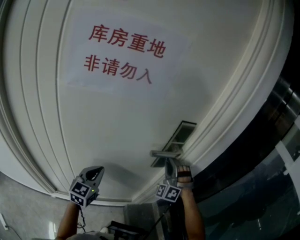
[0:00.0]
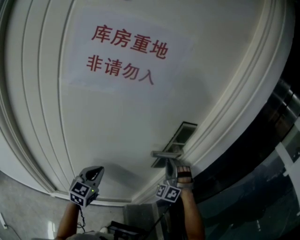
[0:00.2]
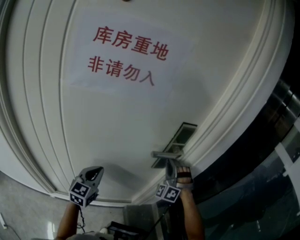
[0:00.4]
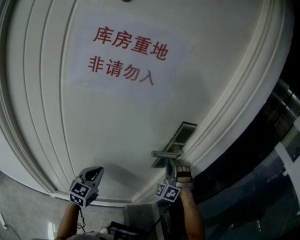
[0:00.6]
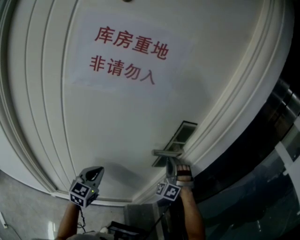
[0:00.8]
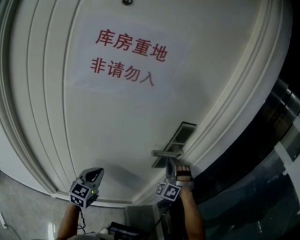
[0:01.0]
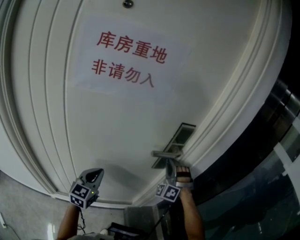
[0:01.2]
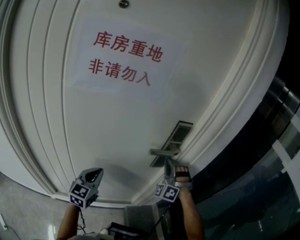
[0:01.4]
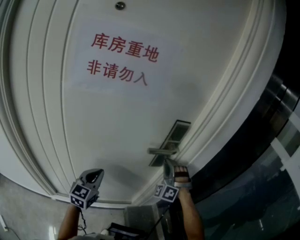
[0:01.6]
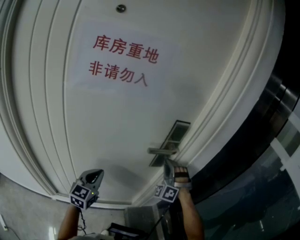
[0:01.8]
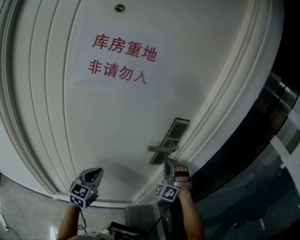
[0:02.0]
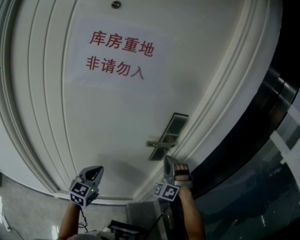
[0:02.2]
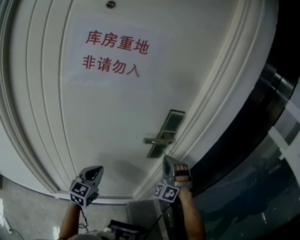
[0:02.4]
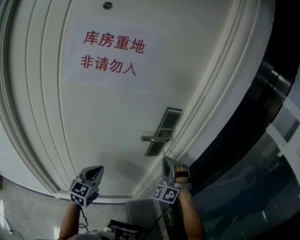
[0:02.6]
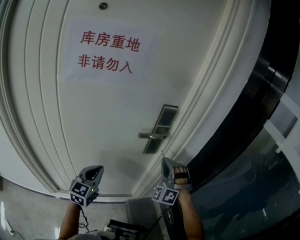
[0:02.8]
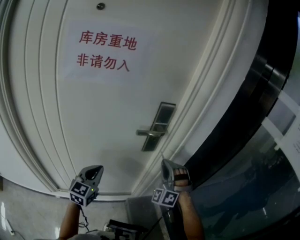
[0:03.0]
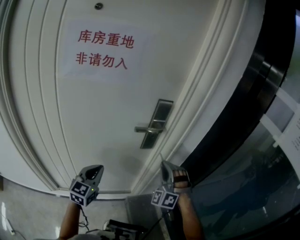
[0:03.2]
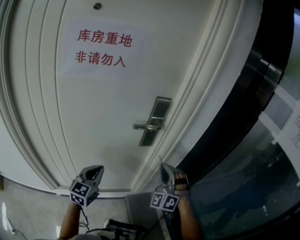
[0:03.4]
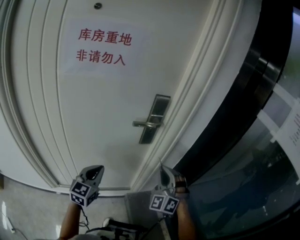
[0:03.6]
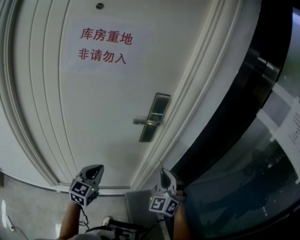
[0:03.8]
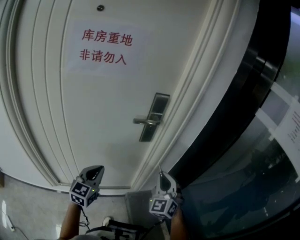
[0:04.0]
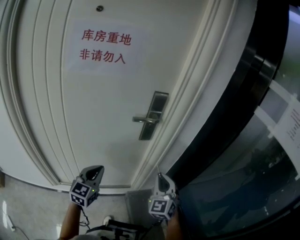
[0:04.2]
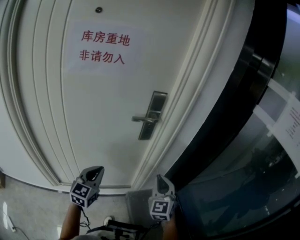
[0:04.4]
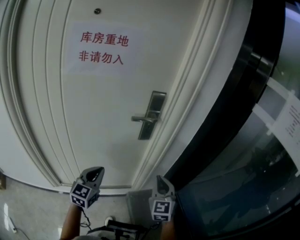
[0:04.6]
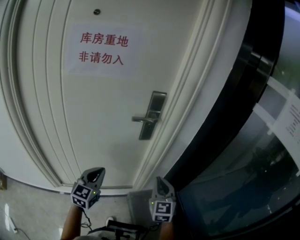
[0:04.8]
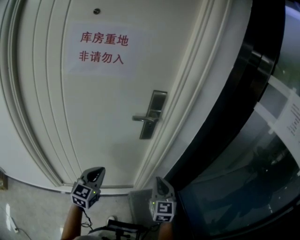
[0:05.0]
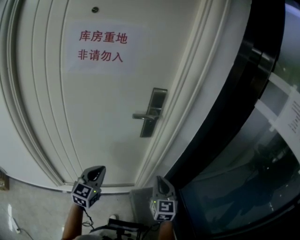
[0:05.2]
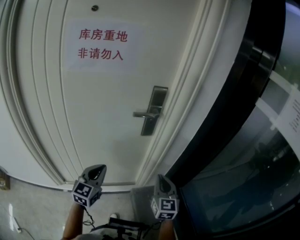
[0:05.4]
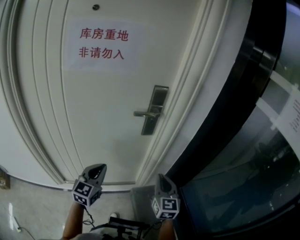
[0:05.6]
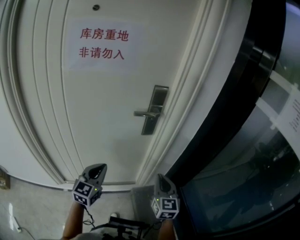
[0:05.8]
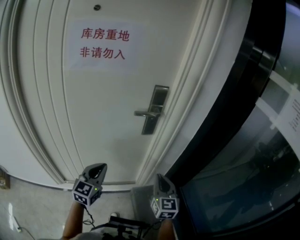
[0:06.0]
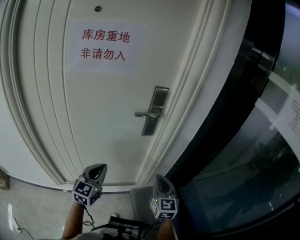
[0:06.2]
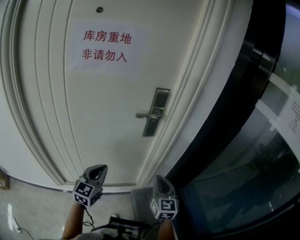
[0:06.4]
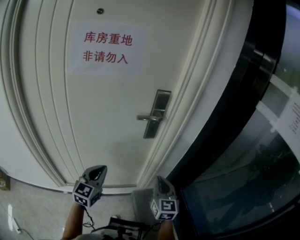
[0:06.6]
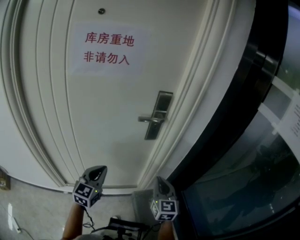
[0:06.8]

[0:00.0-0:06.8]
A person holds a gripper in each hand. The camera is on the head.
0:00.0 to 0:01.4: There are only small adjustments of the grippers.
0:01.4 to 0:02.8: The left gripper moves about 5 cm. The right gripper heads backward, covering approximately 10 cm.
0:02.8 to 0:04.0: The left gripper moves backward, some 5 cm, while the right gripper travels backward and to the right by roughly 15 cm, and swivels some 40 degrees.
0:04.0 to 0:05.4: The right gripper changes its angle by about 40 degrees.
0:05.4 to 0:06.8: The grippers make only small movements.

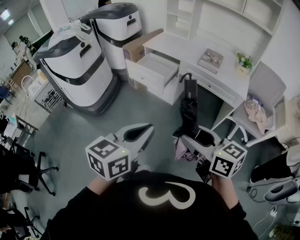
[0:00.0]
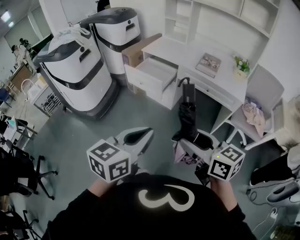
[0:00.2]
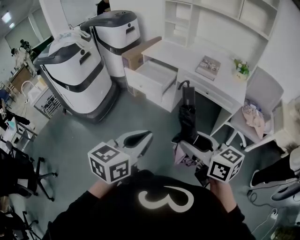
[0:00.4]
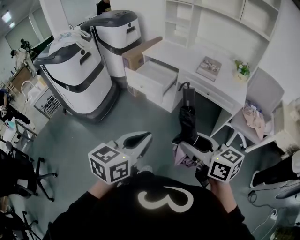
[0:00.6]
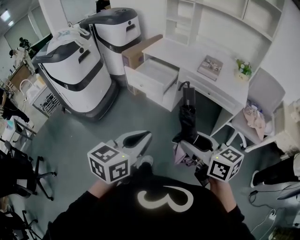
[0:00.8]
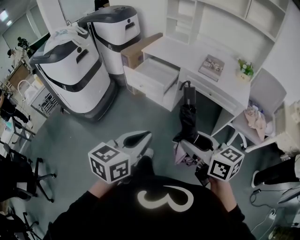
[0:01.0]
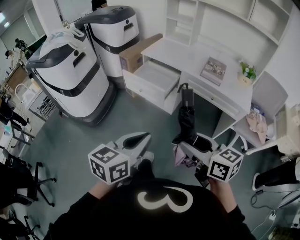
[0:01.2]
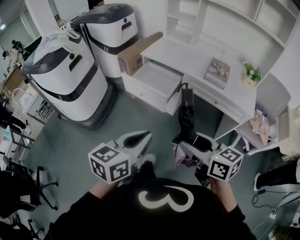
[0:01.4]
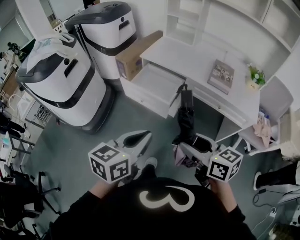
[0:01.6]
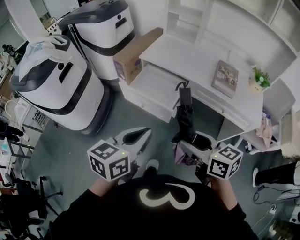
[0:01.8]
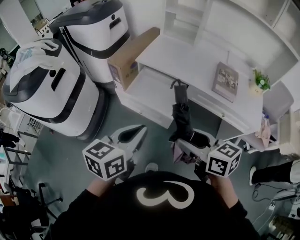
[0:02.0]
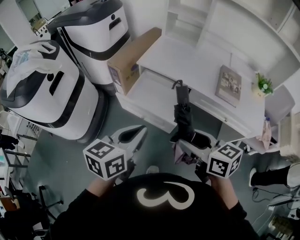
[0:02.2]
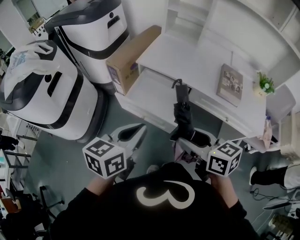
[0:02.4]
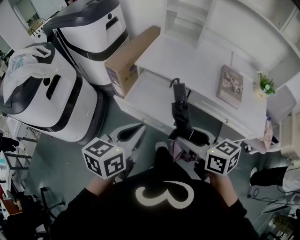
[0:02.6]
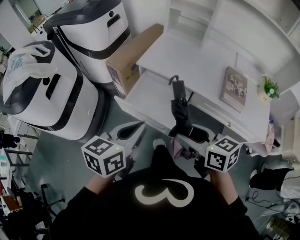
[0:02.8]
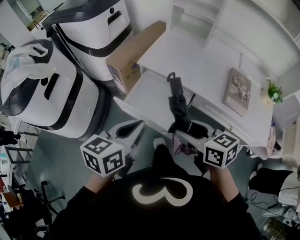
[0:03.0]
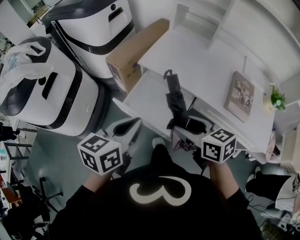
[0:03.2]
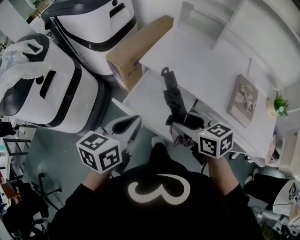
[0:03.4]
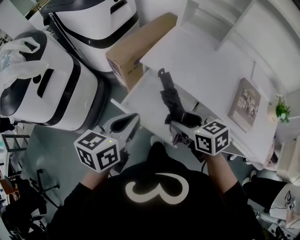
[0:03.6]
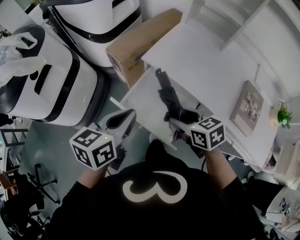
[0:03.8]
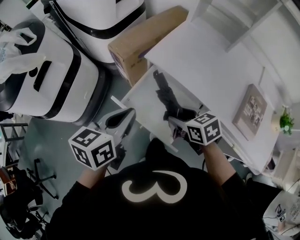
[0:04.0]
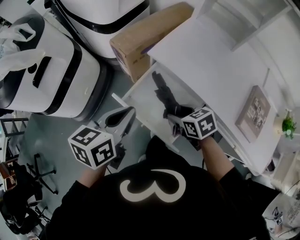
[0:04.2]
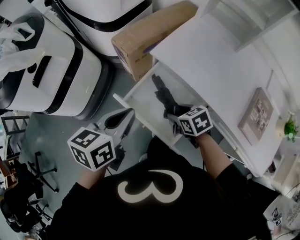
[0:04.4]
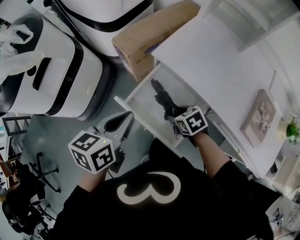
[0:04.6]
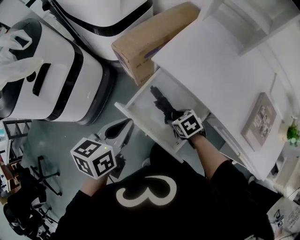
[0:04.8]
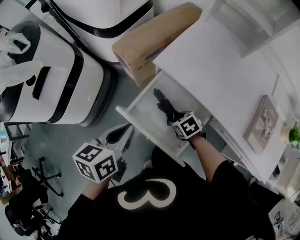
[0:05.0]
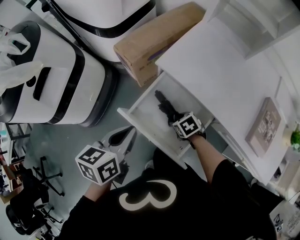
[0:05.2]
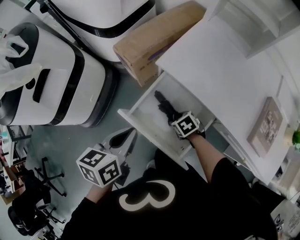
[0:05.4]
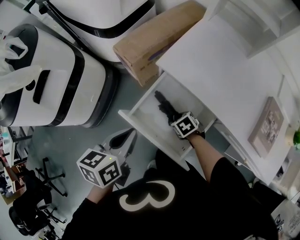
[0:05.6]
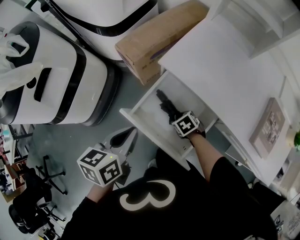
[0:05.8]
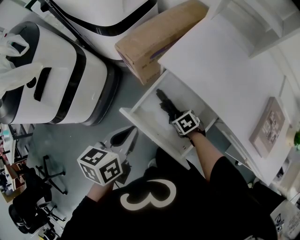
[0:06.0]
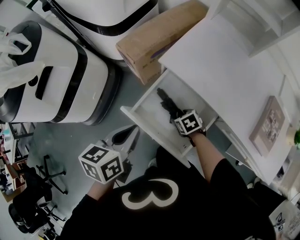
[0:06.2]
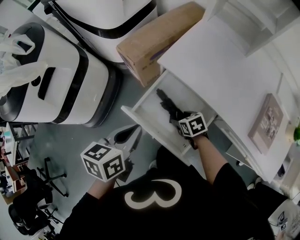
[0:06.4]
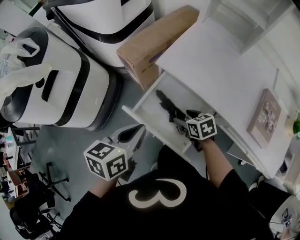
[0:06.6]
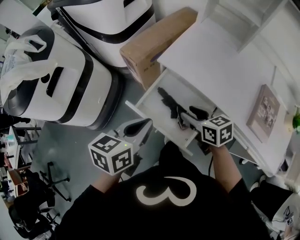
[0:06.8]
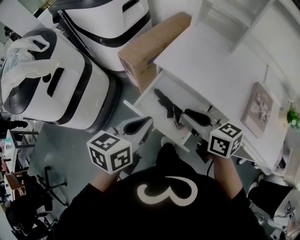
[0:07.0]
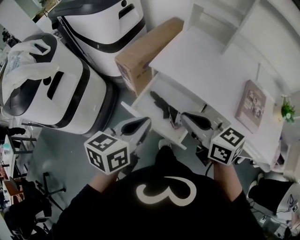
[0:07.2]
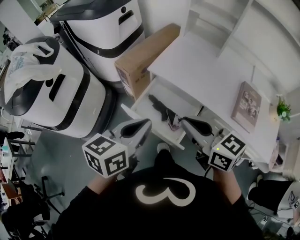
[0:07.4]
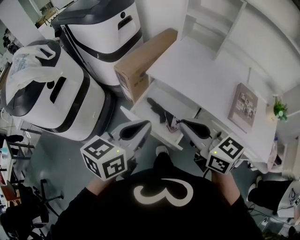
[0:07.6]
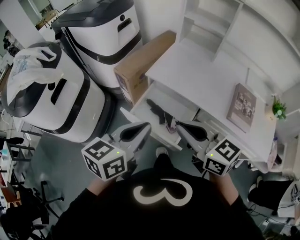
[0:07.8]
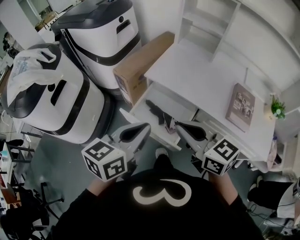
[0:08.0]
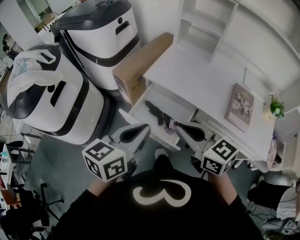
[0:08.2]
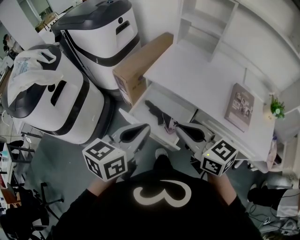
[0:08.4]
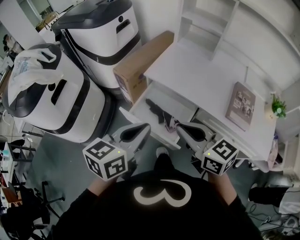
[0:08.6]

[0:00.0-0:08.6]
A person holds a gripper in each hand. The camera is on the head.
0:00.0 to 0:01.4: The two grippers go roughly 20 cm forward.
0:01.4 to 0:02.8: Both grippers move forward, approximately 35 cm.
0:02.8 to 0:04.4: The left gripper heads forward and downward, covering some 20 cm, while the right gripper travels downward and forward by approximately 30 cm, and tips its fingers downward by about 30 degrees.
0:04.4 to 0:05.8: The right gripper goes some 15 cm downward; the left gripper goes approximately 5 cm downward.
0:05.8 to 0:07.2: The right gripper shifts approximately 40 cm upward, tips its fingers upward by about 60 degrees, and closes its fingers; the left gripper goes approximately 15 cm upward and backward.
0:07.2 to 0:08.6: The right gripper is displaced backward by about 5 cm; the left gripper moves upward and backward, approximately 10 cm.

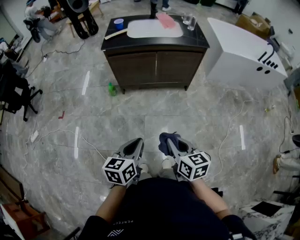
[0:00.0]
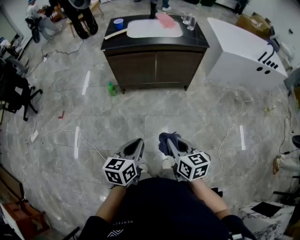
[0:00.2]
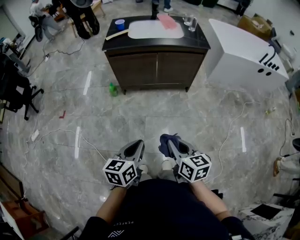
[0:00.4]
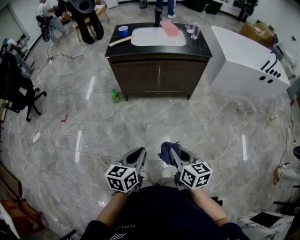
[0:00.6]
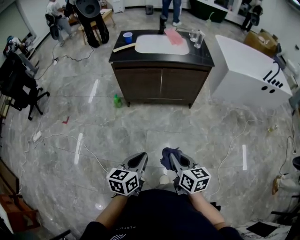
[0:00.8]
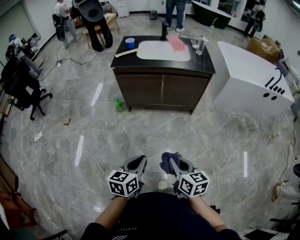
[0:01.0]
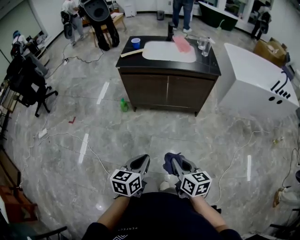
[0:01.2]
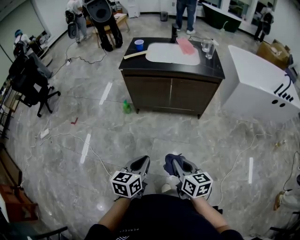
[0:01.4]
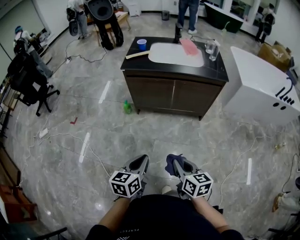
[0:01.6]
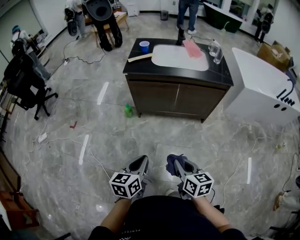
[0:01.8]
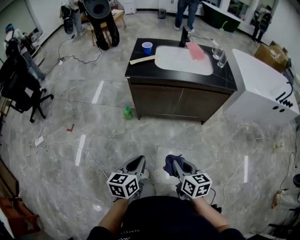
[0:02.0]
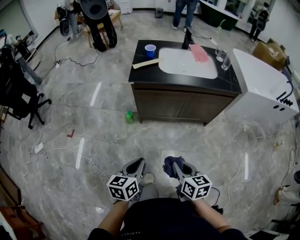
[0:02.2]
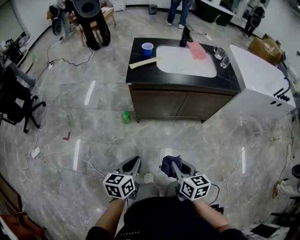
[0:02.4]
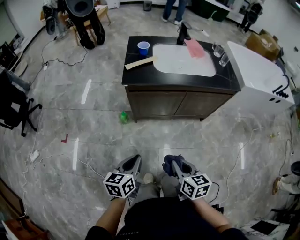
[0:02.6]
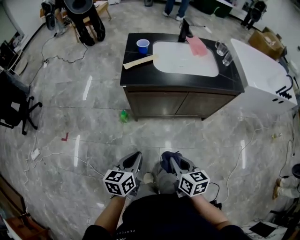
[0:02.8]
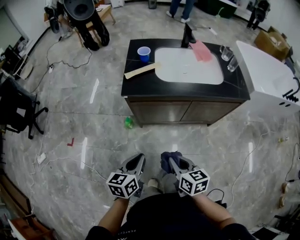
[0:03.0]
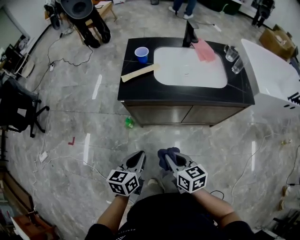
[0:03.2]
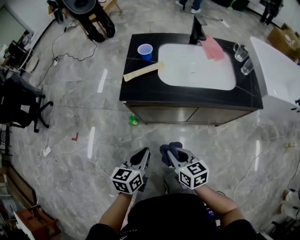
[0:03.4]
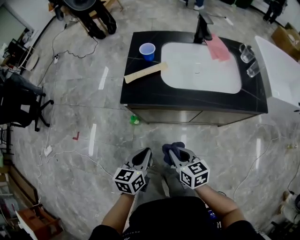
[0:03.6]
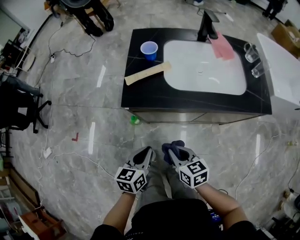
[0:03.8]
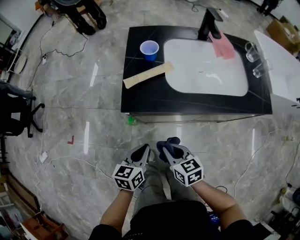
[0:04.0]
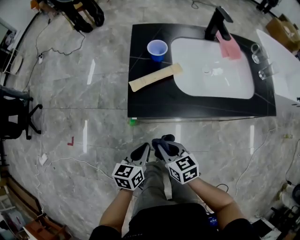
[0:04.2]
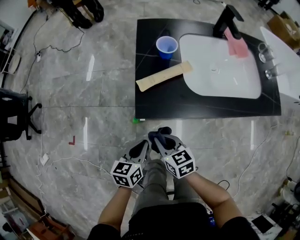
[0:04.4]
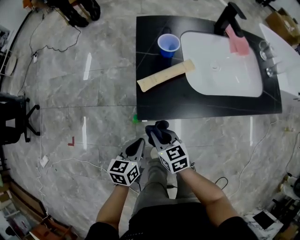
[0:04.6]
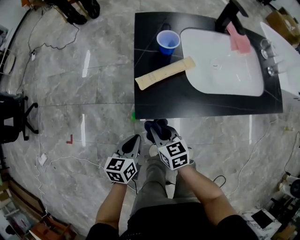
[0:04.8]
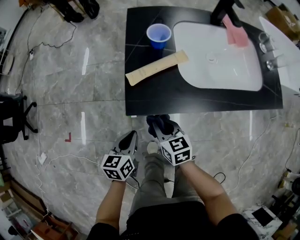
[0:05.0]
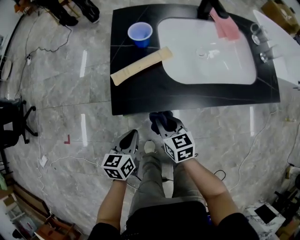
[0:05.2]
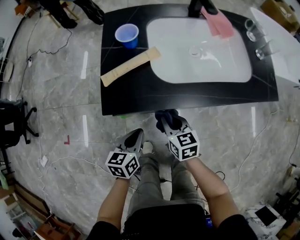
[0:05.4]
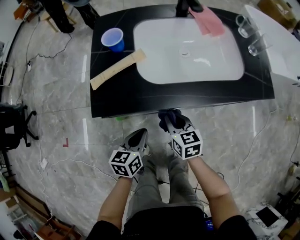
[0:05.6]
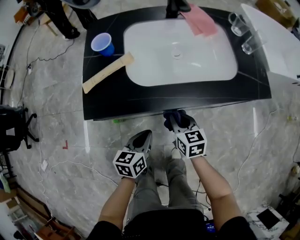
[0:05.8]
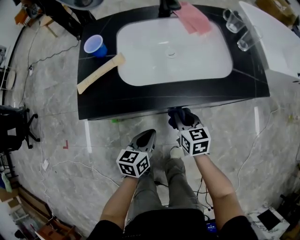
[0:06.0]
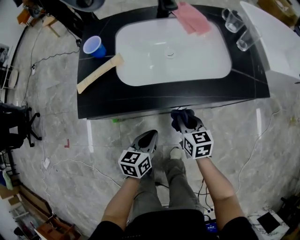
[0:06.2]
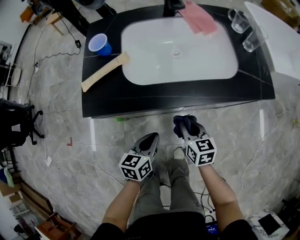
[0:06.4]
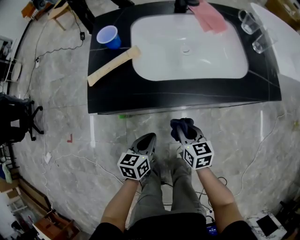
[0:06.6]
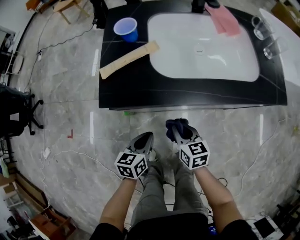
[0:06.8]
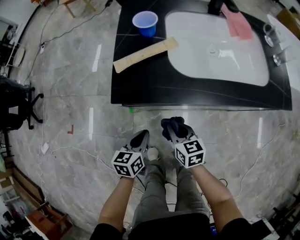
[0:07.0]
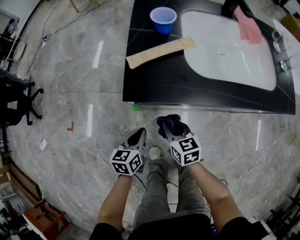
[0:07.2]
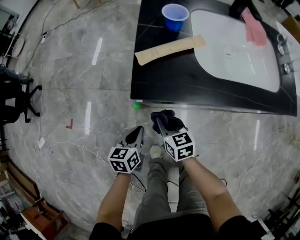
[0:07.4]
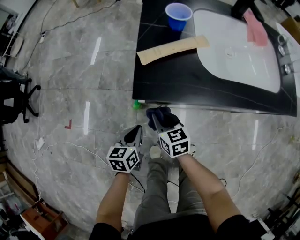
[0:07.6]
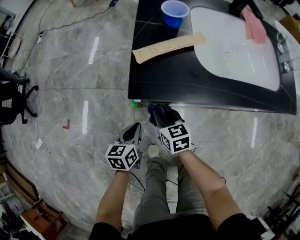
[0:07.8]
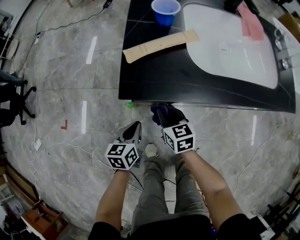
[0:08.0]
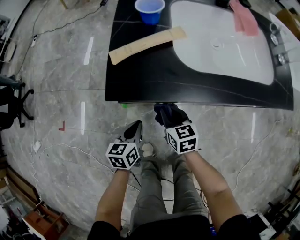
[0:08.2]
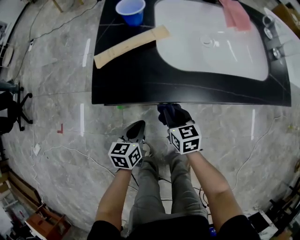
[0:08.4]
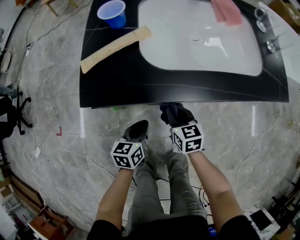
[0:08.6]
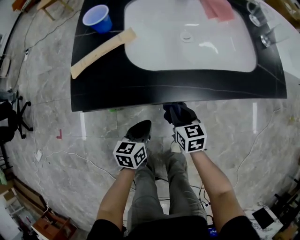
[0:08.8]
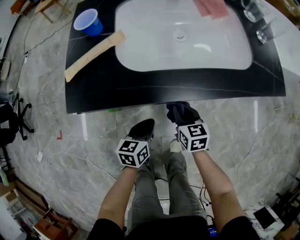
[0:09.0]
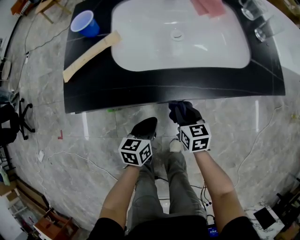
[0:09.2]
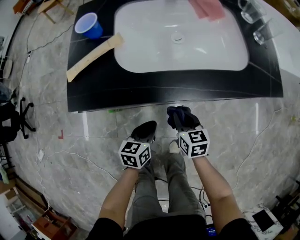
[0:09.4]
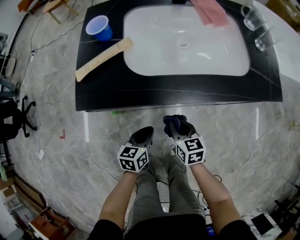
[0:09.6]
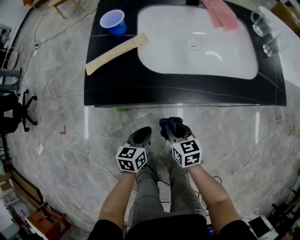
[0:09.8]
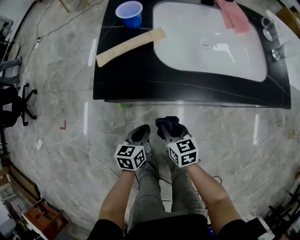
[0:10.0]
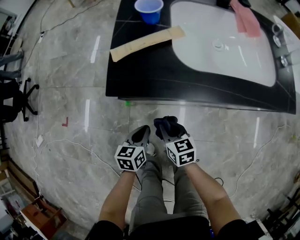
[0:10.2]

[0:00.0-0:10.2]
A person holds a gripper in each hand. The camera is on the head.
0:00.0 to 0:01.4: The left gripper shifts by some 5 cm; the right gripper changes place by approximately 5 cm.
0:01.4 to 0:03.0: The grippers both shift forward and to the left by roughly 35 cm.
0:03.0 to 0:04.4: The left gripper heads forward and downward, covering roughly 25 cm. The right gripper travels forward and to the left by about 30 cm.
0:04.4 to 0:05.8: The two grippers go approximately 25 cm to the right.
0:05.8 to 0:07.2: Both grippers move to the left, some 20 cm.
0:07.2 to 0:08.8: Both grippers travel together to the right, some 20 cm.
0:08.8 to 0:10.2: The left gripper travels to the left by approximately 10 cm, while the right gripper travels to the left and backward by roughly 15 cm.
